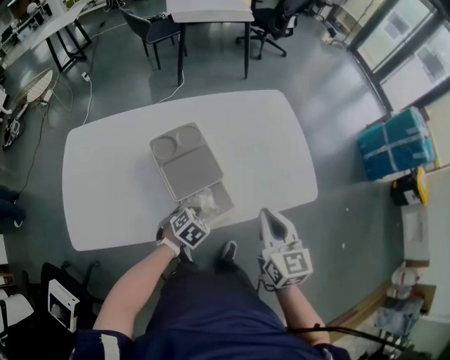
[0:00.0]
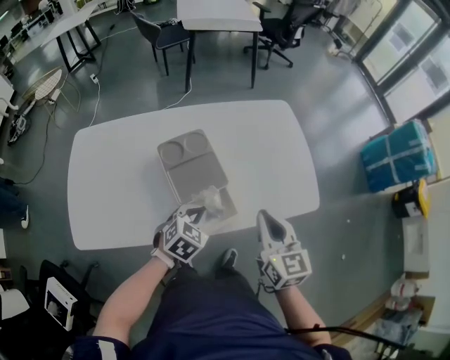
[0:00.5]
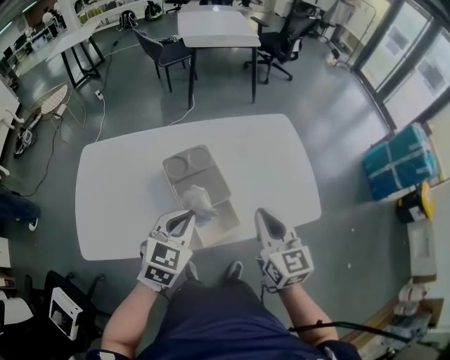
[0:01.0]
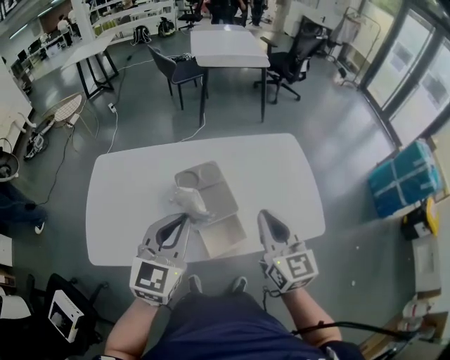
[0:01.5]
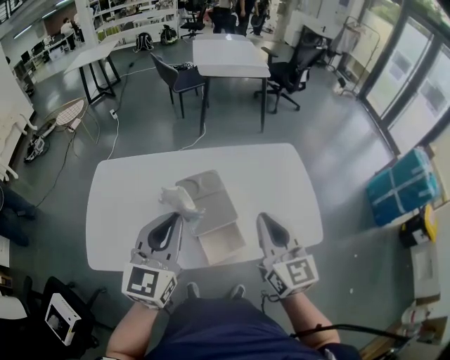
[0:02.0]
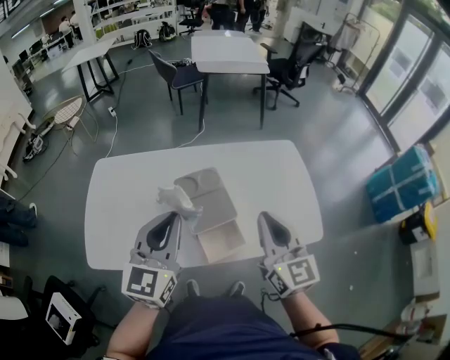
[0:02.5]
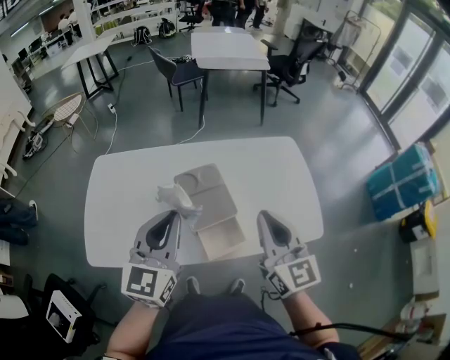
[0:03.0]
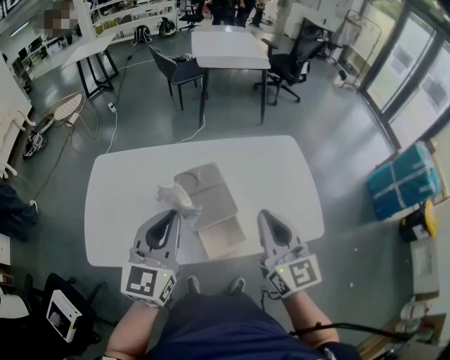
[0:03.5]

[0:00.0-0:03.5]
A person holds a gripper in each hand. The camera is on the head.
0:00.0 to 0:02.0: The left gripper is displaced upward by some 35 cm, and points its fingers approximately 60 degrees further upward. Meanwhile the right gripper is displaced upward and to the left by some 15 cm.
0:02.0 to 0:03.5: The two grippers keep their place.

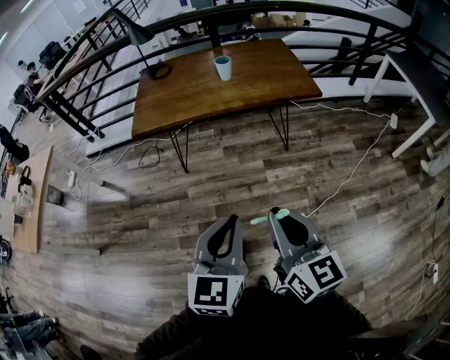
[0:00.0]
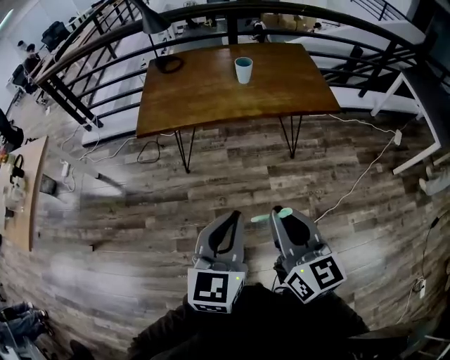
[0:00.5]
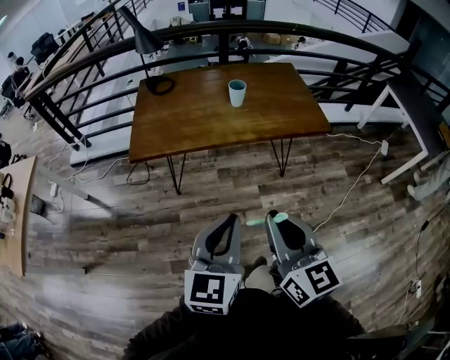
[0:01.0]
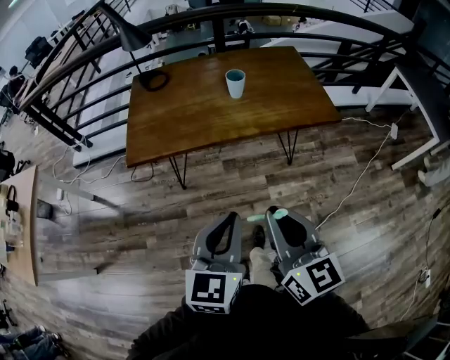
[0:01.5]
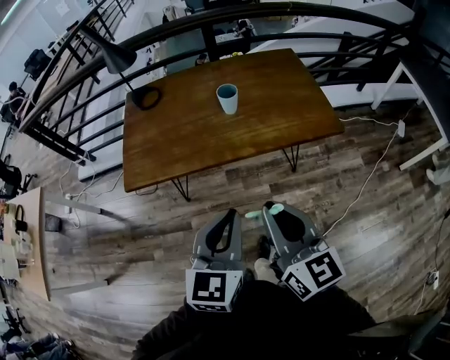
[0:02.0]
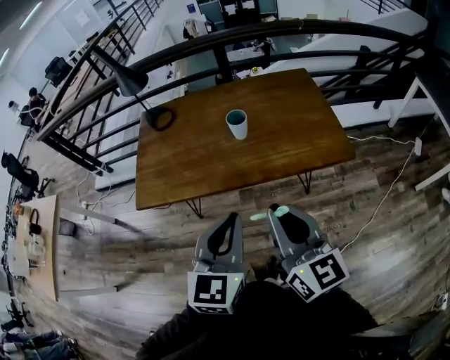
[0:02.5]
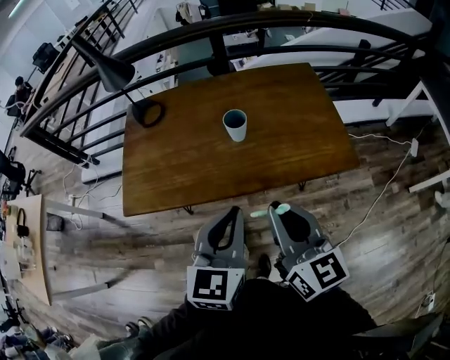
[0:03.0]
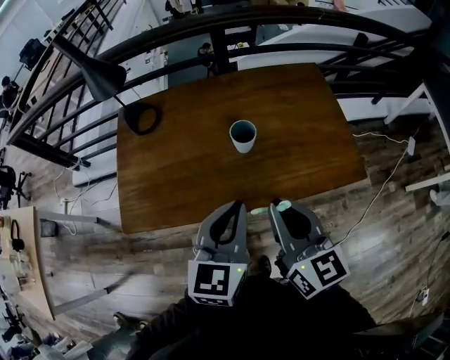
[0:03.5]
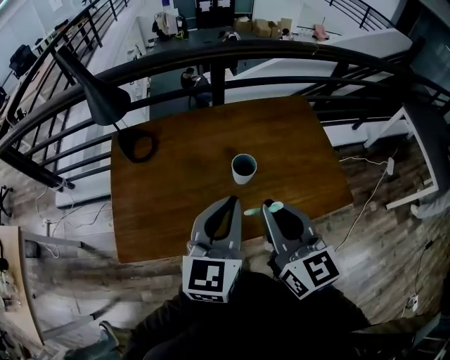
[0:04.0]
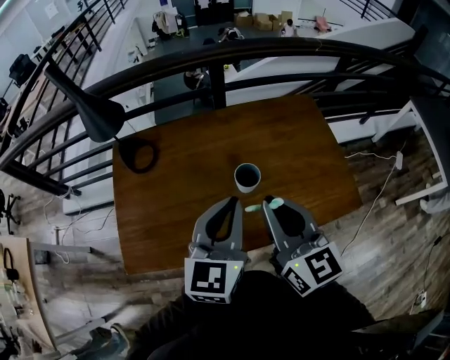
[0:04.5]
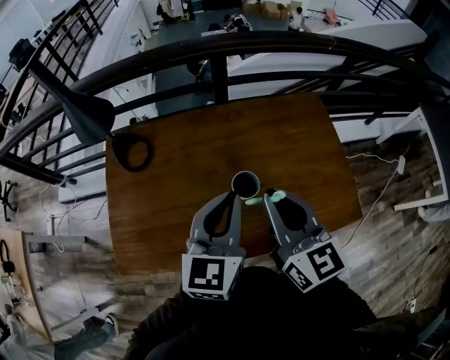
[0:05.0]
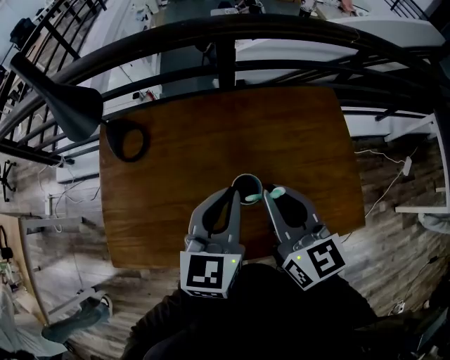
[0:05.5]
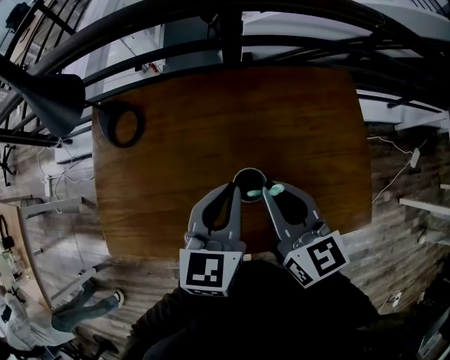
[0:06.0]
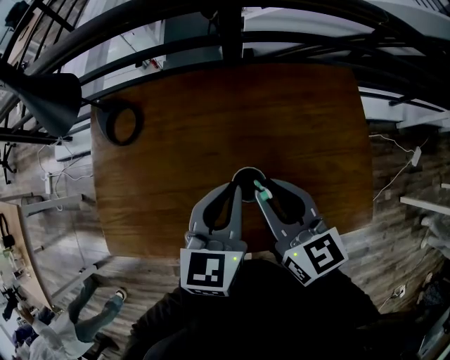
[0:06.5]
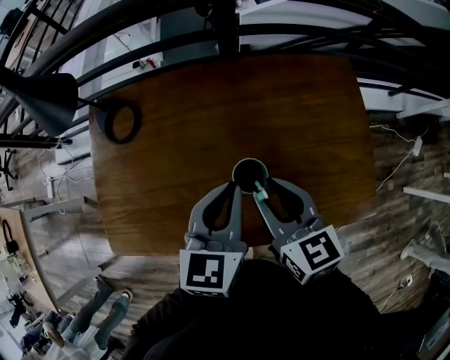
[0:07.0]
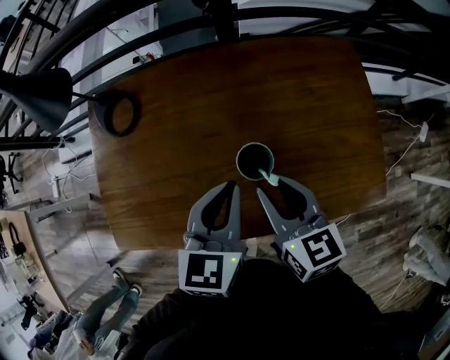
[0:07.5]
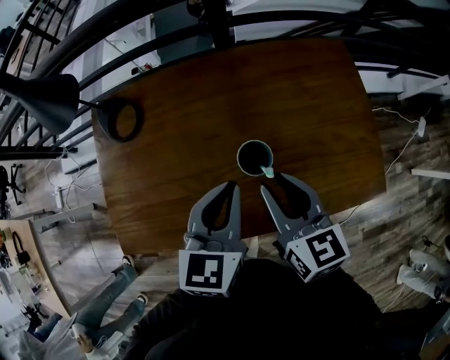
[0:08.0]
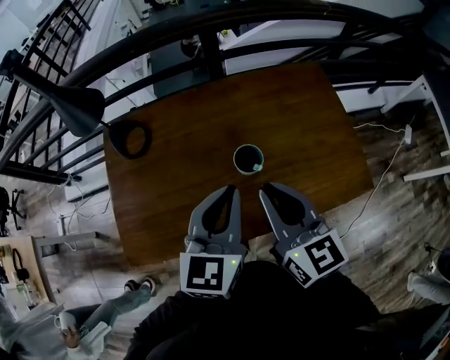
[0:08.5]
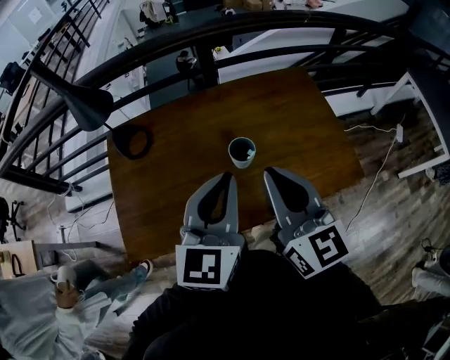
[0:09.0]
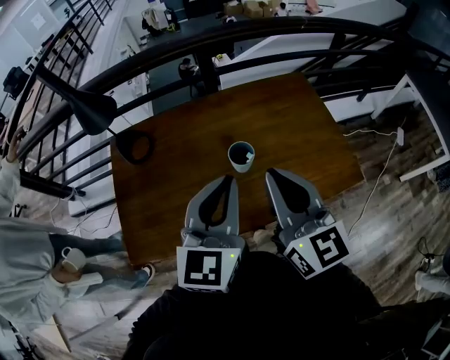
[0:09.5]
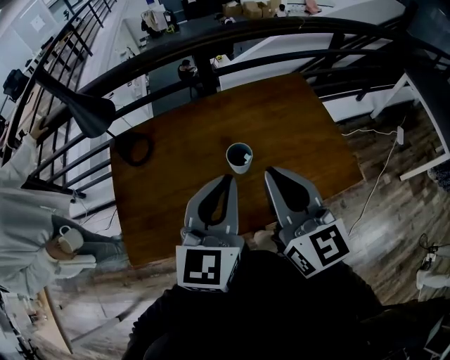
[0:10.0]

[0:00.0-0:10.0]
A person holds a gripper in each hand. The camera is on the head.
0:00.0 to 0:02.0: Both grippers travel together forward, about 30 cm.
0:02.0 to 0:04.0: Both grippers move forward, some 30 cm.
0:04.0 to 0:06.0: The two grippers go roughly 20 cm forward and downward. The left gripper changes its angle by some 20 degrees.
0:06.0 to 0:08.0: The right gripper shifts by roughly 5 cm, and opens.
0:08.0 to 0:10.0: The two grippers go roughly 15 cm upward and backward. The left gripper turns by roughly 20 degrees, while the right gripper turns by about 30 degrees, and closes its fingers.

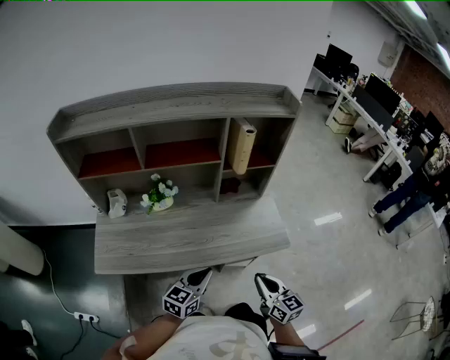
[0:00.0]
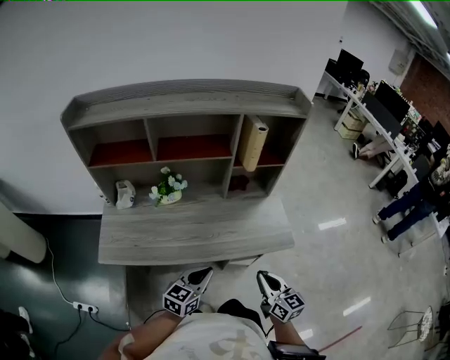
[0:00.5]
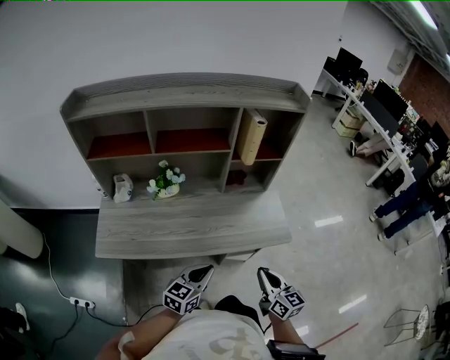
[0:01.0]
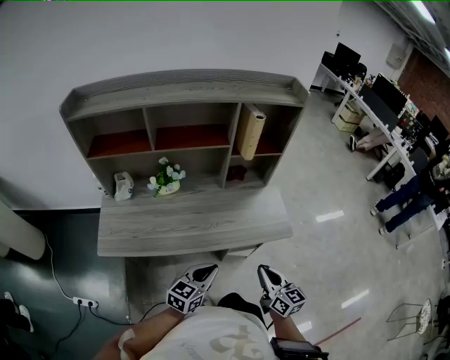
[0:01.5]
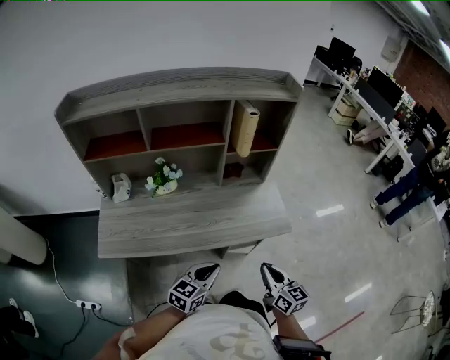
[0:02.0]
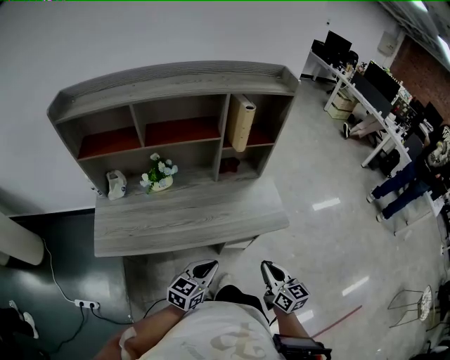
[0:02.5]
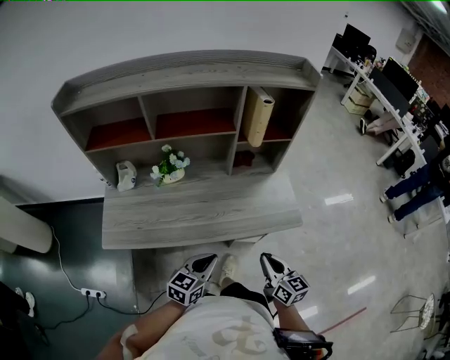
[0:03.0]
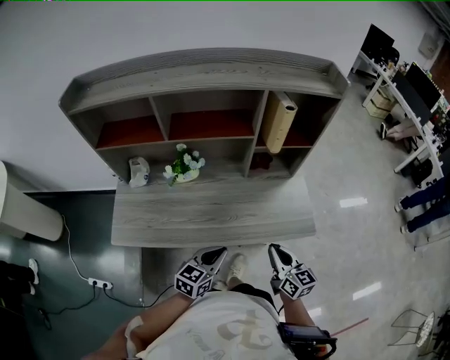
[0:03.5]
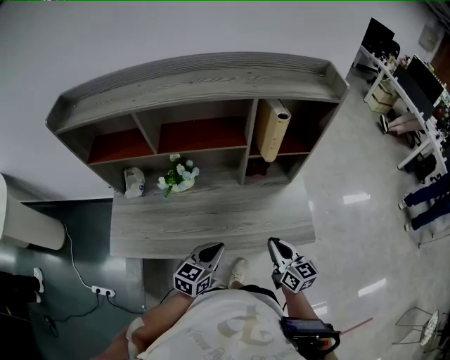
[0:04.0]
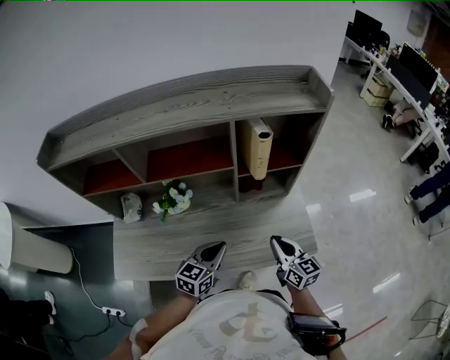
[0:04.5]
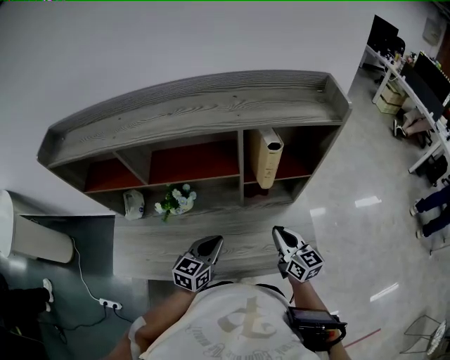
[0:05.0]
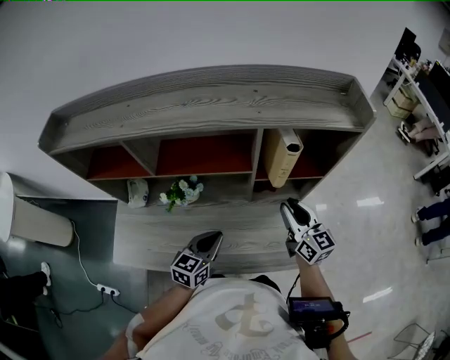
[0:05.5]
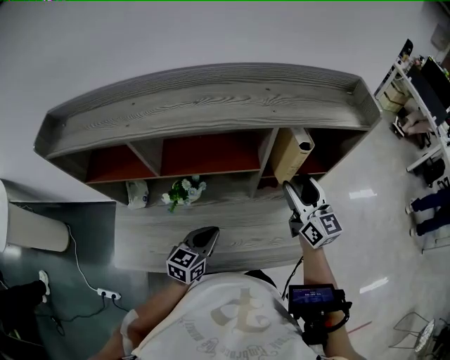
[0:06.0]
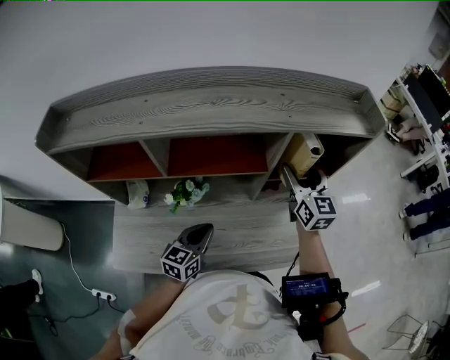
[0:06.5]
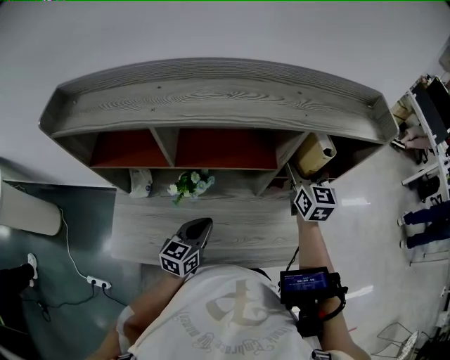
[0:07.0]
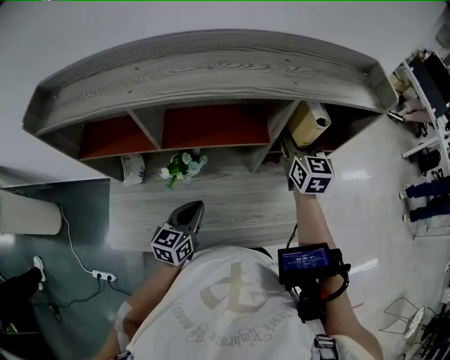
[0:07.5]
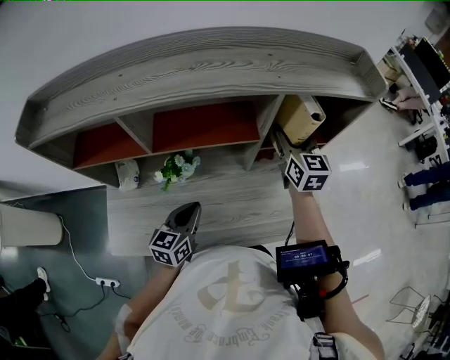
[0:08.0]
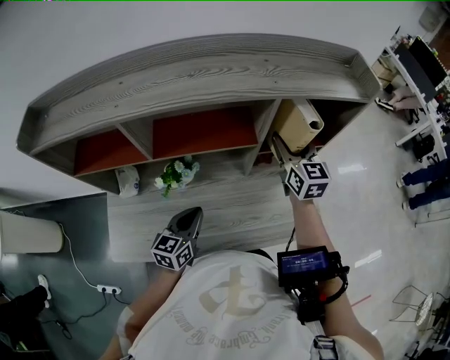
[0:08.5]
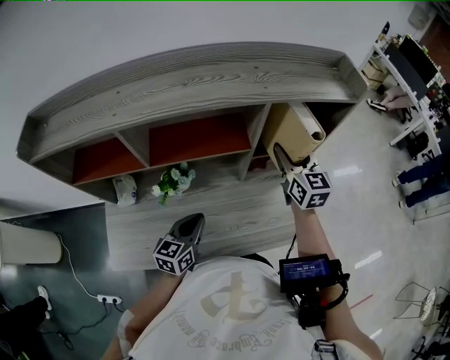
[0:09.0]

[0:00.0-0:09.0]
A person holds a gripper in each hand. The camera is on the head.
0:00.0 to 0:02.0: The left gripper goes approximately 5 cm backward.
0:02.0 to 0:04.5: Both grippers travel together forward, roughly 25 cm.
0:04.5 to 0:07.0: The left gripper shifts roughly 15 cm to the left and forward; the right gripper heads forward and upward, covering about 30 cm, turns by approximately 20 degrees, and opens.
0:07.0 to 0:09.0: The right gripper moves some 5 cm.

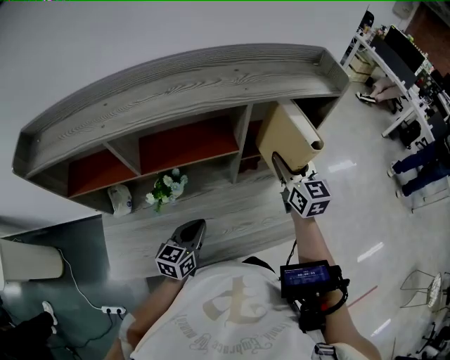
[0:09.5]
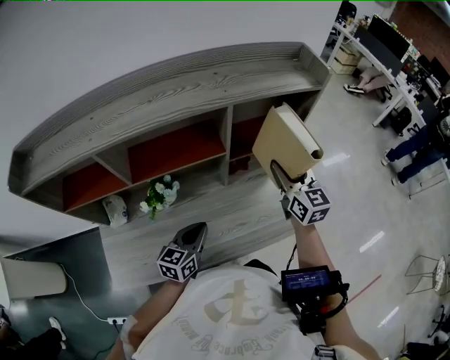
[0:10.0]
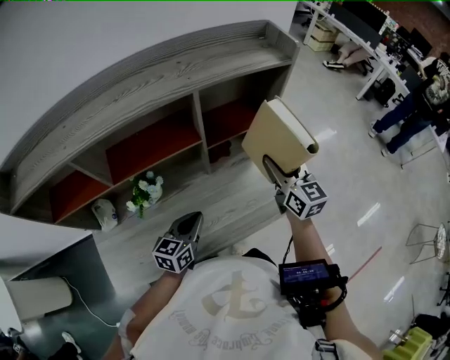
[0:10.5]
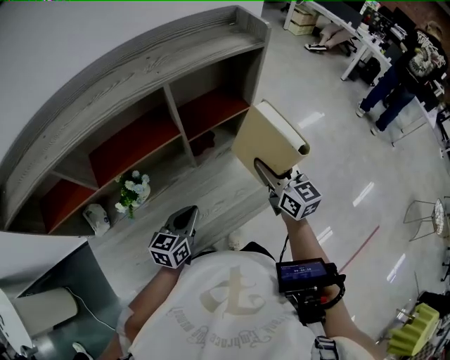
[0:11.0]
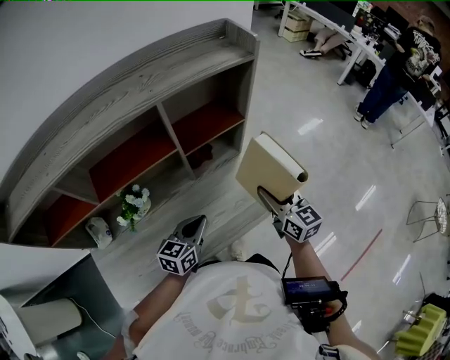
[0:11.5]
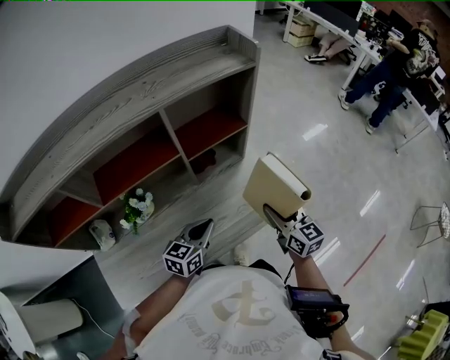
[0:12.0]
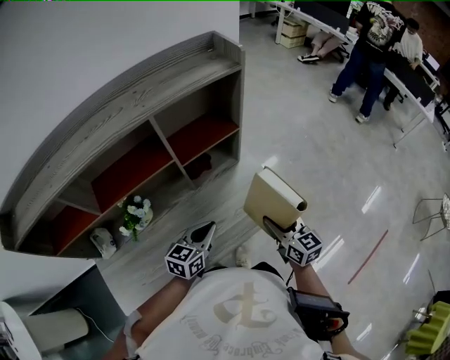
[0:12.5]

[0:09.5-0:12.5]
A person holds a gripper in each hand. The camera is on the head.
0:09.5 to 0:11.0: The left gripper moves to the right, approximately 10 cm, while the right gripper moves to the right and backward, about 15 cm.
0:11.0 to 0:12.5: The right gripper is displaced backward, downward and to the right by roughly 15 cm. Meanwhile the left gripper is displaced to the right by approximately 5 cm.

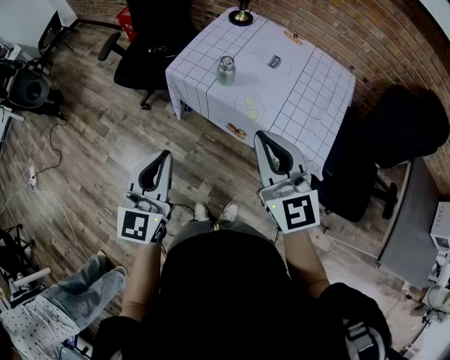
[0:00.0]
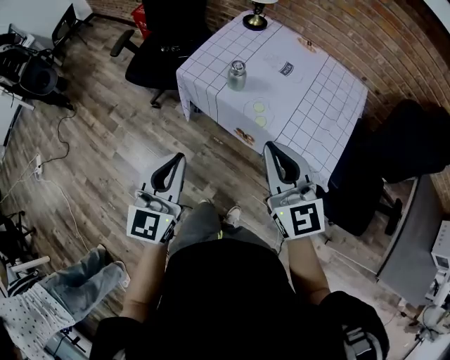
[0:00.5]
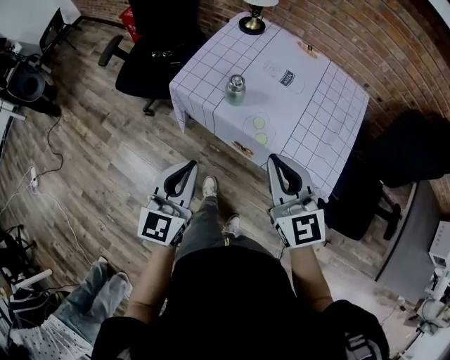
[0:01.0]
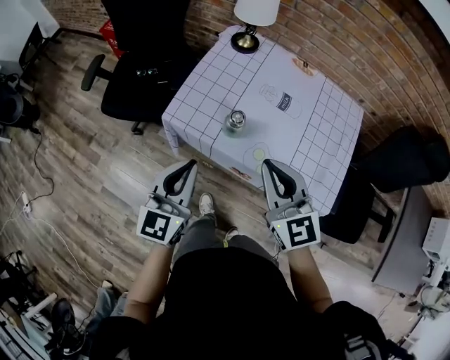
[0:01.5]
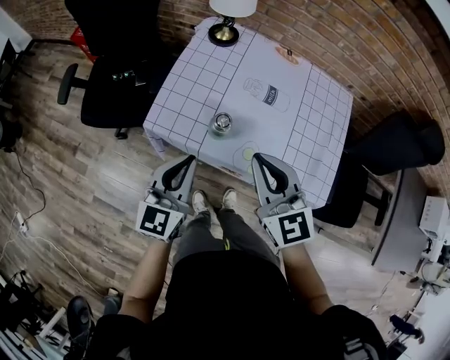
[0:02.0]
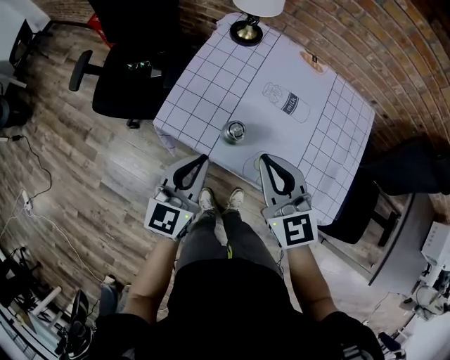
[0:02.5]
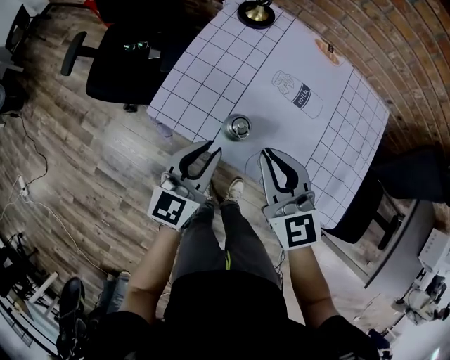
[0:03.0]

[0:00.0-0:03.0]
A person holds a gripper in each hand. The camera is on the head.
0:00.0 to 0:01.5: The grippers both shift forward by roughly 20 cm.
0:01.5 to 0:03.0: The right gripper moves forward and downward, approximately 15 cm. The left gripper shifts about 15 cm downward, forward and to the right.
